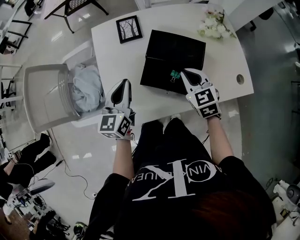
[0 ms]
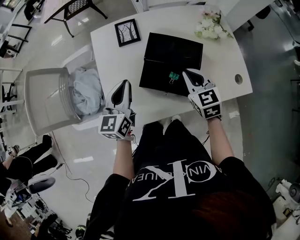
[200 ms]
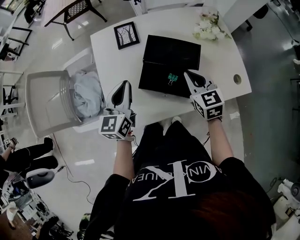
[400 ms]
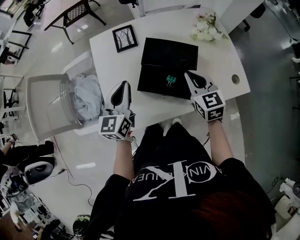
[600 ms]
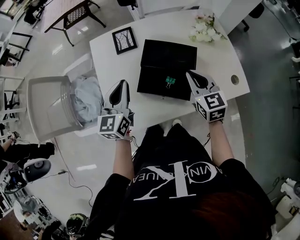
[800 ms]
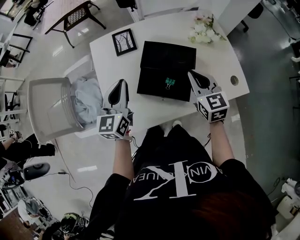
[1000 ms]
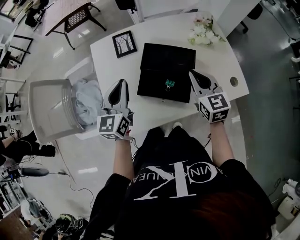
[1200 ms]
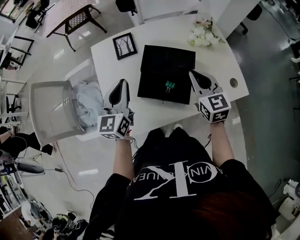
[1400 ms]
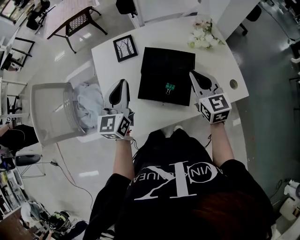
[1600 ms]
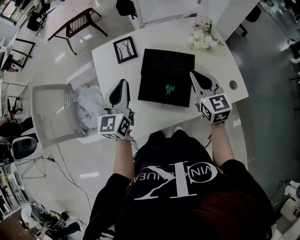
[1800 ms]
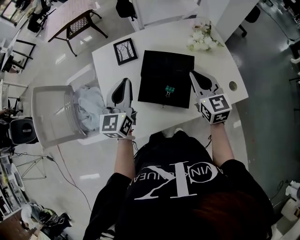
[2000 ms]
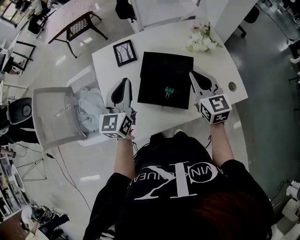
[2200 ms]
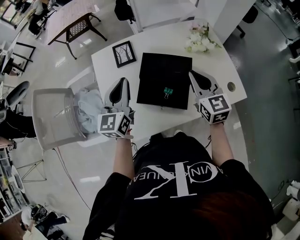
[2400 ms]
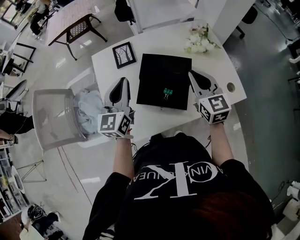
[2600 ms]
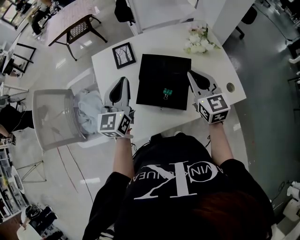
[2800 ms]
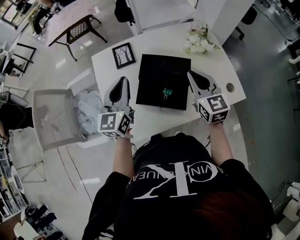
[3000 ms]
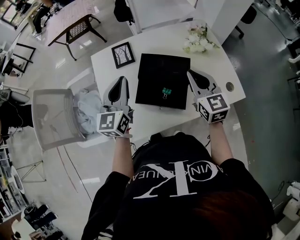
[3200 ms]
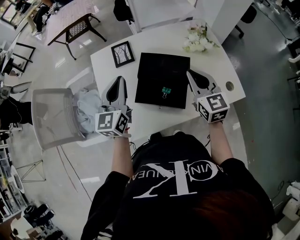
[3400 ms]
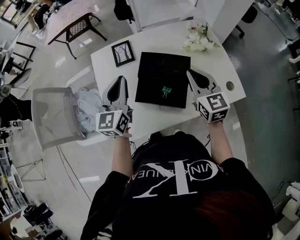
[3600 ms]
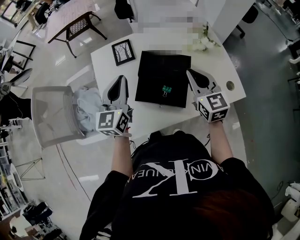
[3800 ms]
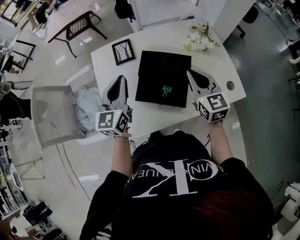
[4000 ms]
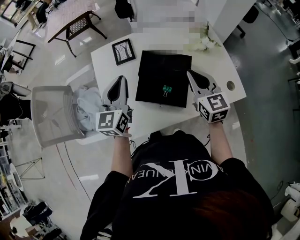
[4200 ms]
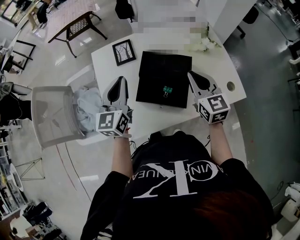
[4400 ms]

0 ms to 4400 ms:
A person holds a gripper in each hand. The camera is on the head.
0 ms to 1400 ms: The left gripper travels upward by some 5 cm; the right gripper moves upward and to the right, some 10 cm, and rotates some 20 degrees.
1400 ms to 4400 ms: There are only small adjustments of the grippers.

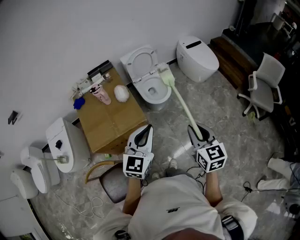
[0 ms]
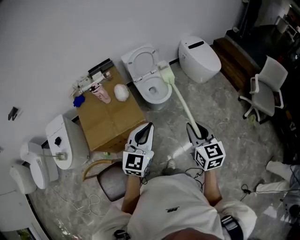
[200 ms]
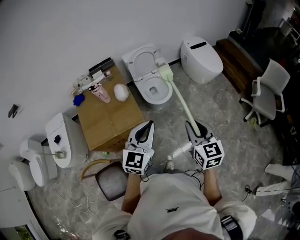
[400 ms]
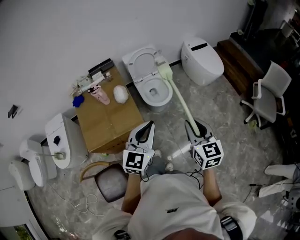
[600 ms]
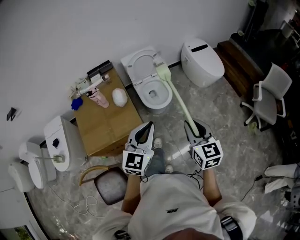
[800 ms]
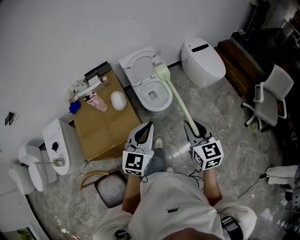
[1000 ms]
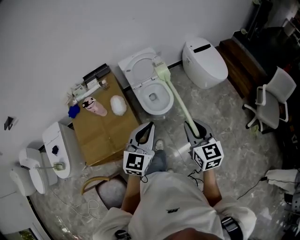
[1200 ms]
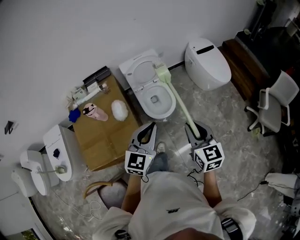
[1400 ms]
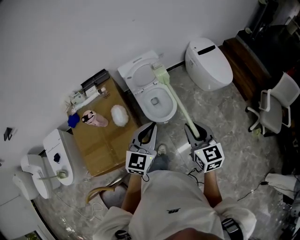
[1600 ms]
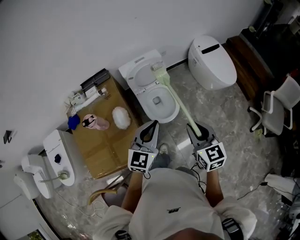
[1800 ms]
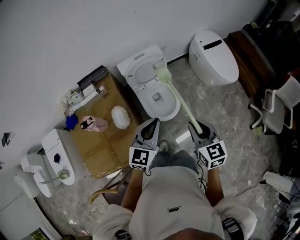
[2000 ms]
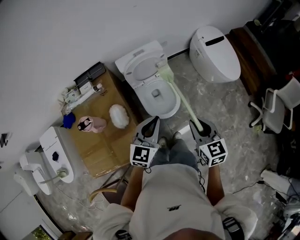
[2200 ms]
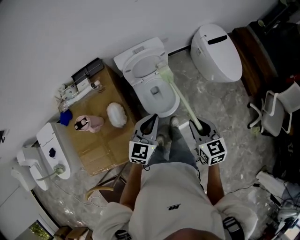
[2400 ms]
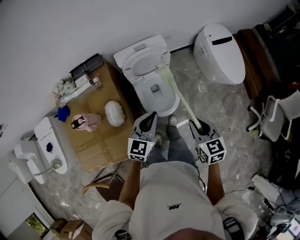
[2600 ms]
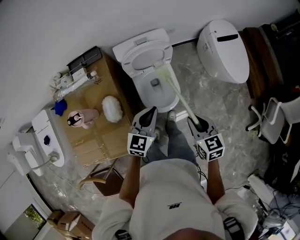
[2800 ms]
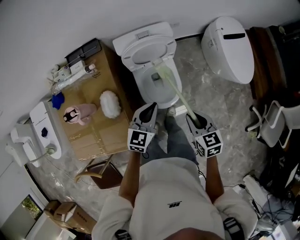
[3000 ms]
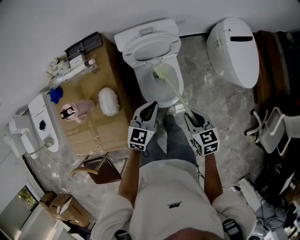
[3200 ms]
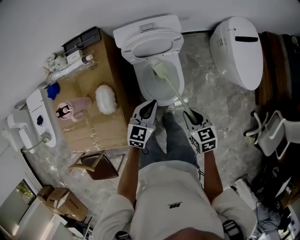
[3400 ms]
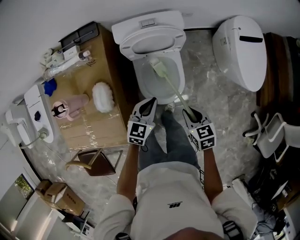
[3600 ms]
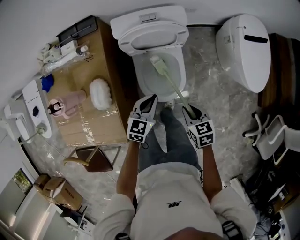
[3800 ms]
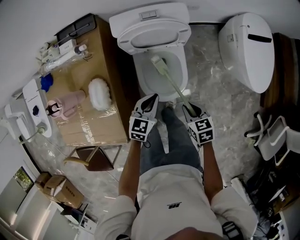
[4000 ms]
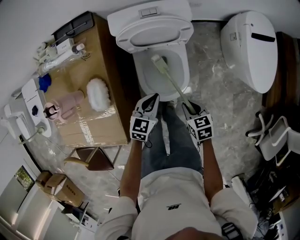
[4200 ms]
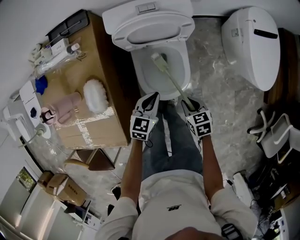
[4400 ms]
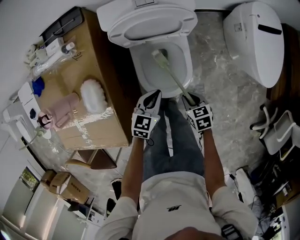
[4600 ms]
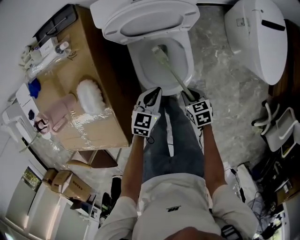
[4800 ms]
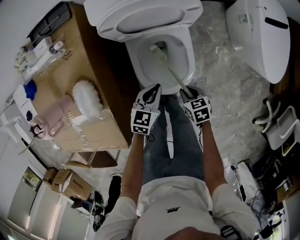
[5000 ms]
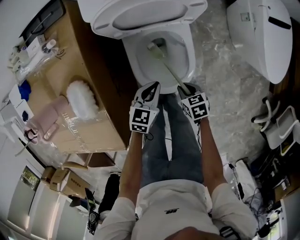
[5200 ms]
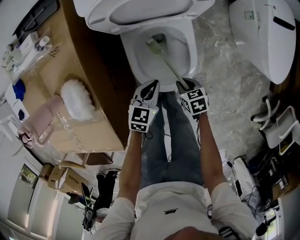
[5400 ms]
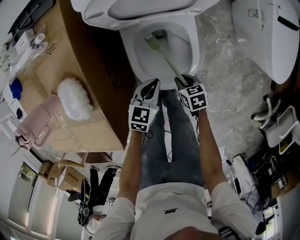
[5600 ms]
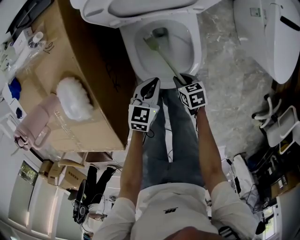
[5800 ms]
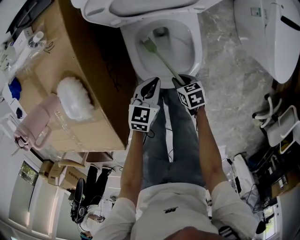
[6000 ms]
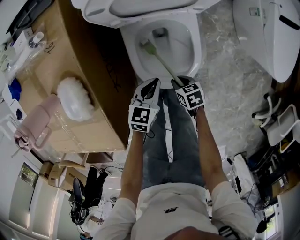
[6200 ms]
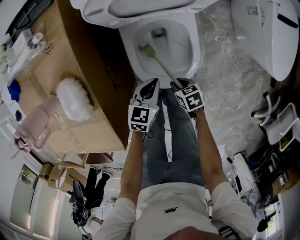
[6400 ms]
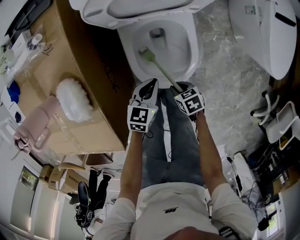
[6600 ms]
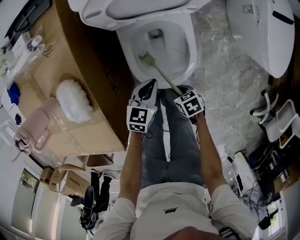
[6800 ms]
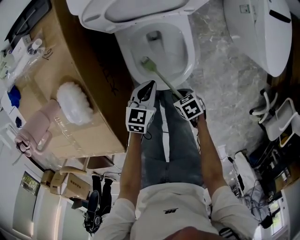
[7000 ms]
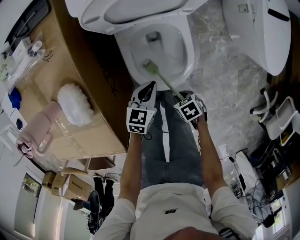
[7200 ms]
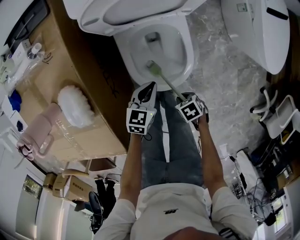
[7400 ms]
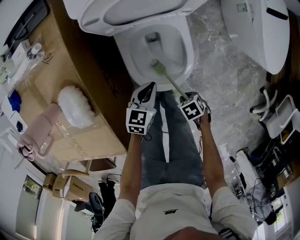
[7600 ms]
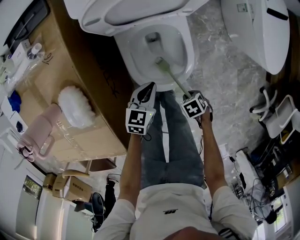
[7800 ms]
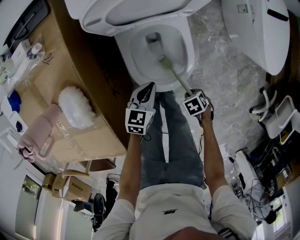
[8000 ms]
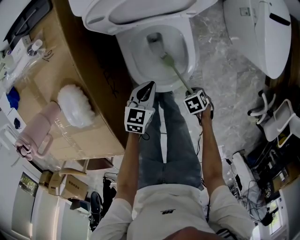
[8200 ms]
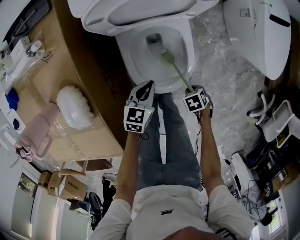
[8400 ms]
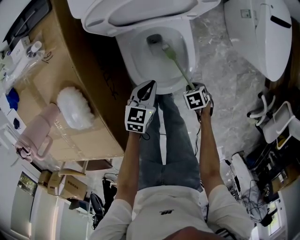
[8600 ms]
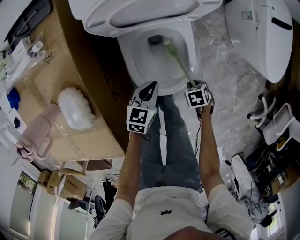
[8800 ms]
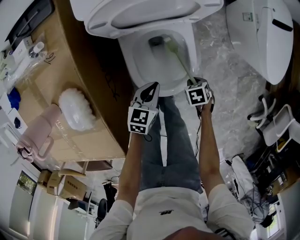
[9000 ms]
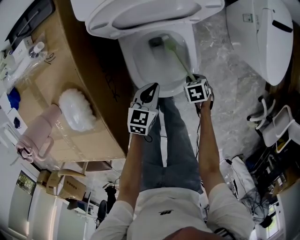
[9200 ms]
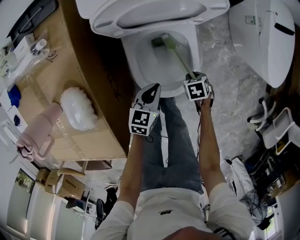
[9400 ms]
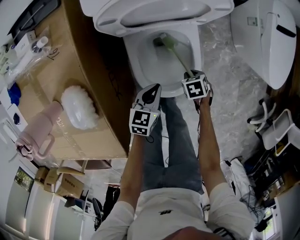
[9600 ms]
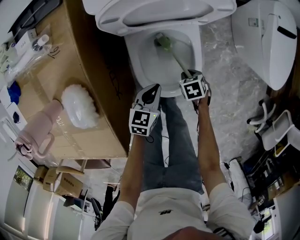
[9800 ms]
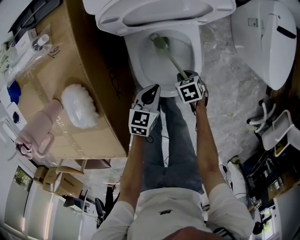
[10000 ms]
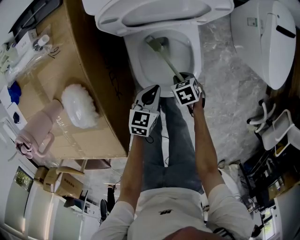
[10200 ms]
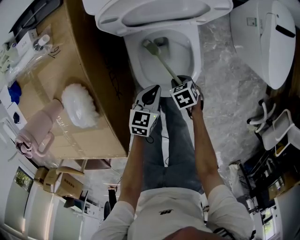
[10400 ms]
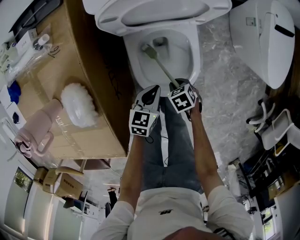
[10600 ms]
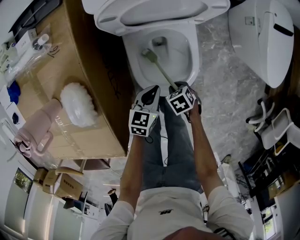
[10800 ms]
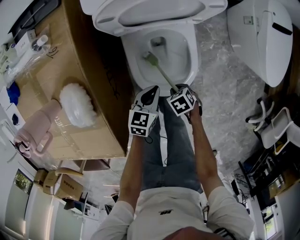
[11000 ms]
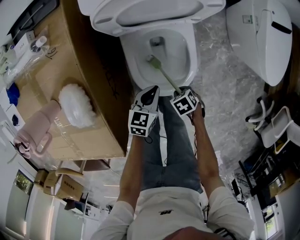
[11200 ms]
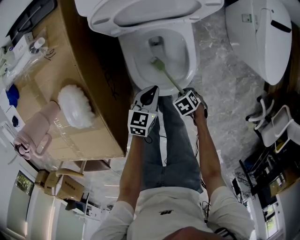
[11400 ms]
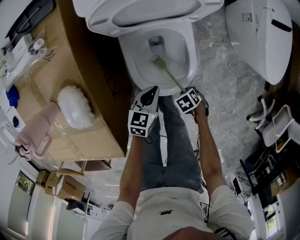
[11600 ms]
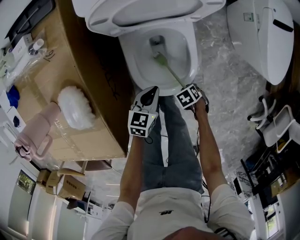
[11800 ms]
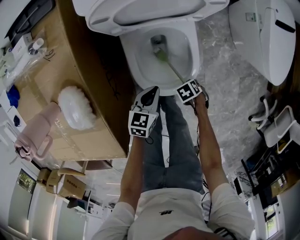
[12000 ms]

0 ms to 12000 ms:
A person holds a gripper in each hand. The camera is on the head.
0 ms to 1600 ms: Both grippers move forward, about 35 cm.
1600 ms to 3000 ms: Both grippers move forward and downward, roughly 30 cm. The right gripper turns by some 30 degrees.
3000 ms to 4400 ms: Both grippers travel together downward, approximately 25 cm. The right gripper turns by some 20 degrees.
4400 ms to 6000 ms: The two grippers go about 20 cm downward.
6000 ms to 7600 ms: The right gripper shifts by about 10 cm, and changes its angle by some 20 degrees.
7600 ms to 9000 ms: The right gripper shifts by some 15 cm.
9000 ms to 10400 ms: The right gripper ends up some 10 cm from where it was.
10400 ms to 12000 ms: The right gripper changes place by approximately 10 cm.

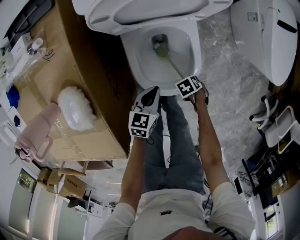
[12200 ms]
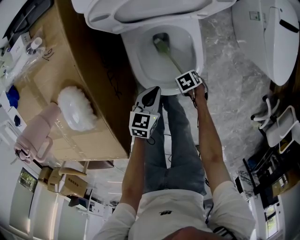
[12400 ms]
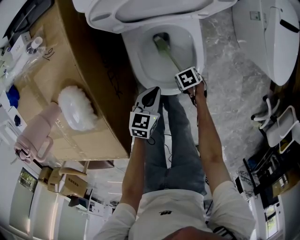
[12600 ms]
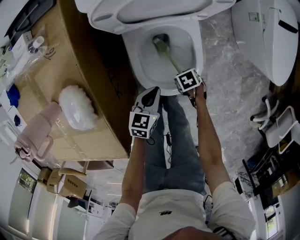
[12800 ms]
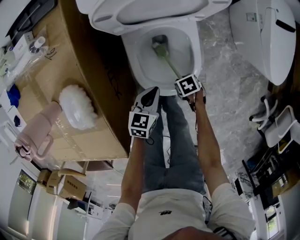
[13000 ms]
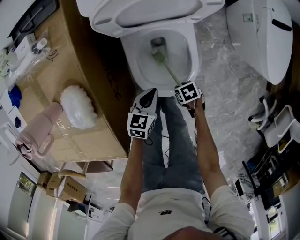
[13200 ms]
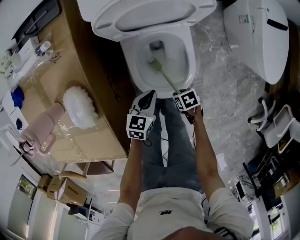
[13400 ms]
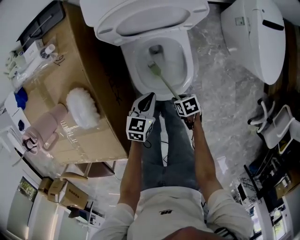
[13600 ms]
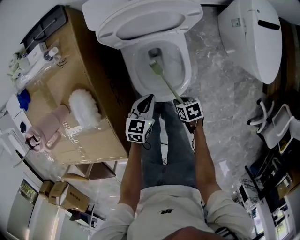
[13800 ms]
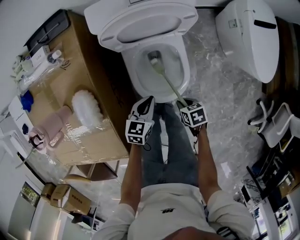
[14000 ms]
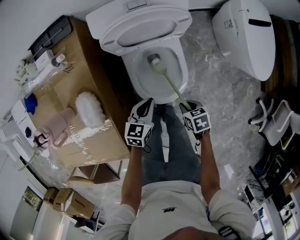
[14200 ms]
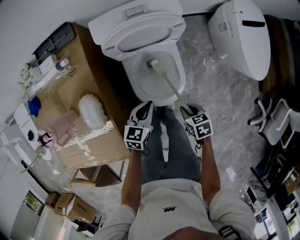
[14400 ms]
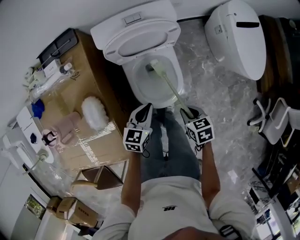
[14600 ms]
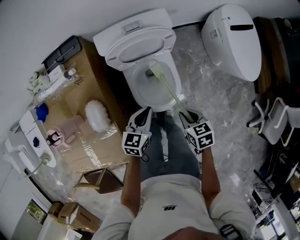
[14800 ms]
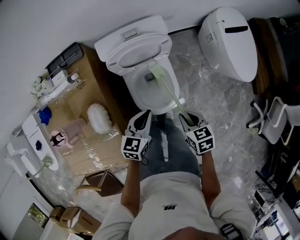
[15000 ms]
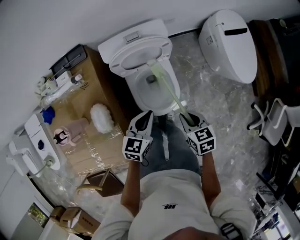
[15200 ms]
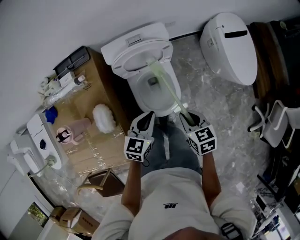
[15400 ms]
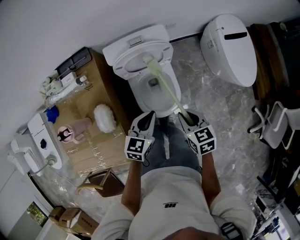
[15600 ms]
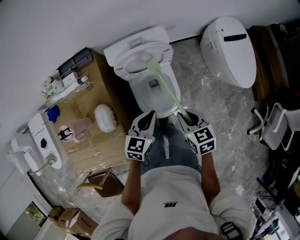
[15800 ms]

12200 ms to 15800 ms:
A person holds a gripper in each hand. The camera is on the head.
12200 ms to 14000 ms: The left gripper is displaced upward by some 10 cm. Meanwhile the right gripper travels upward by about 15 cm, and swivels approximately 30 degrees.
14000 ms to 15800 ms: The two grippers go roughly 30 cm upward. The right gripper swivels about 40 degrees.

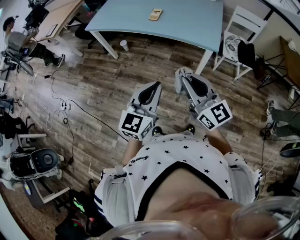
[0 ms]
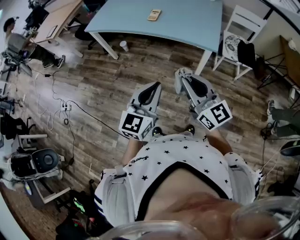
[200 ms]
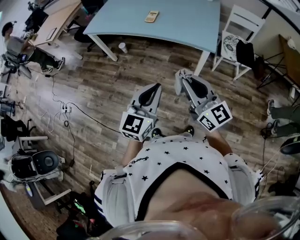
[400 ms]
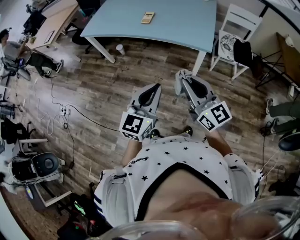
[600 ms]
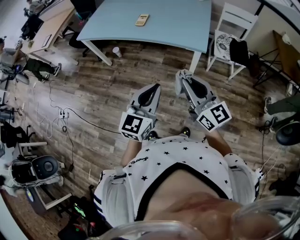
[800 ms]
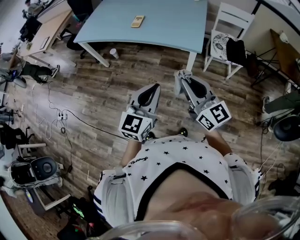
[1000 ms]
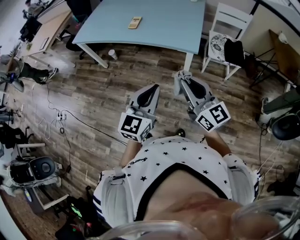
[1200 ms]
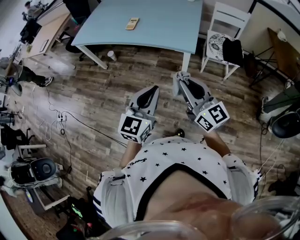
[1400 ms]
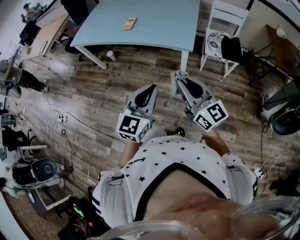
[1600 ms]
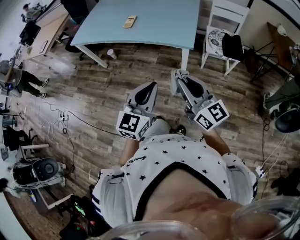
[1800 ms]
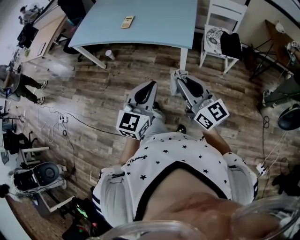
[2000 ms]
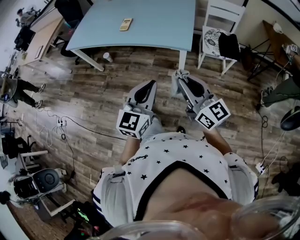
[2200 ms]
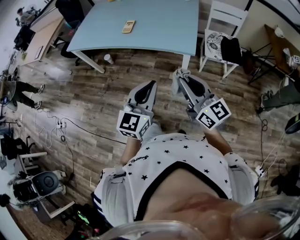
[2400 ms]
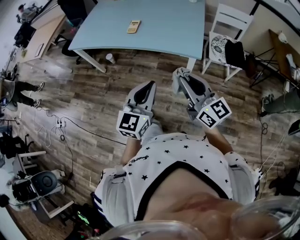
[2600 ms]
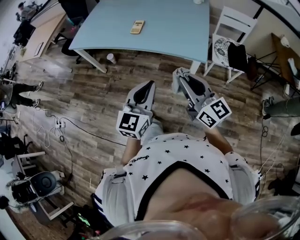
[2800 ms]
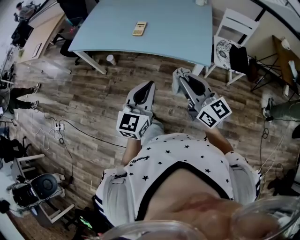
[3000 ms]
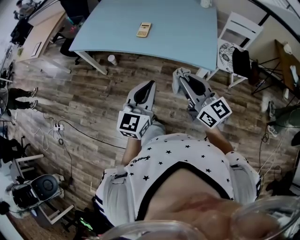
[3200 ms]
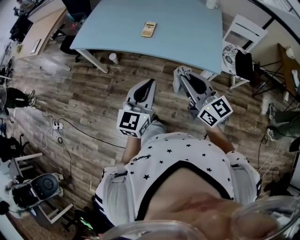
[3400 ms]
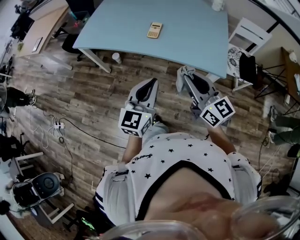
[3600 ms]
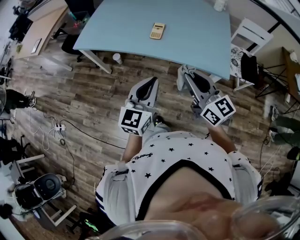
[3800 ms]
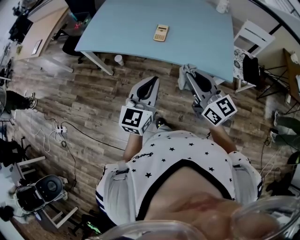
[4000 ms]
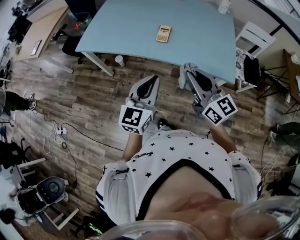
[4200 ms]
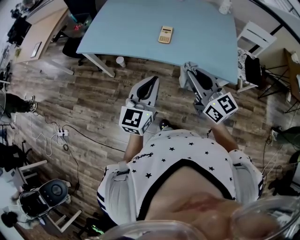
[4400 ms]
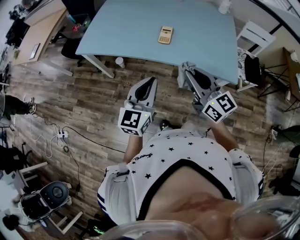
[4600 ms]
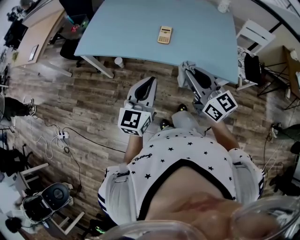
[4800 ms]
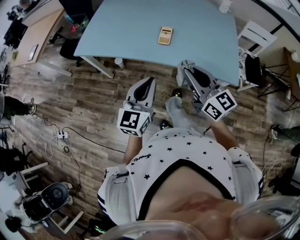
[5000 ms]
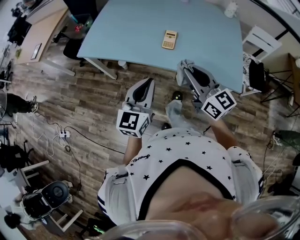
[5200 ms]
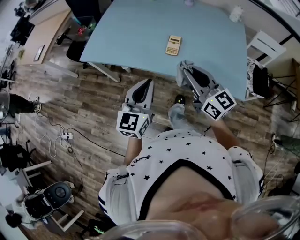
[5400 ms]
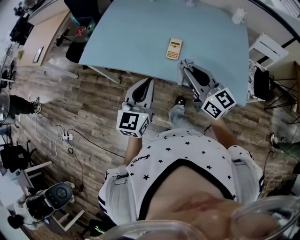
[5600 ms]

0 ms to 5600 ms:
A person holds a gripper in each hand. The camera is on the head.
0 ms to 1400 ms: Both grippers travel together to the right, about 15 cm.
1400 ms to 2800 ms: Both grippers move forward and to the left, approximately 15 cm.
2800 ms to 4200 ms: Both grippers travel together forward and to the left, roughly 25 cm.
4200 ms to 5600 ms: The two grippers go about 15 cm forward.
